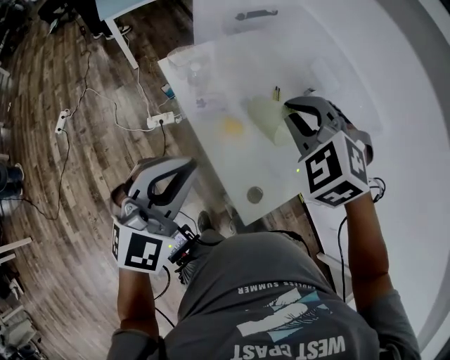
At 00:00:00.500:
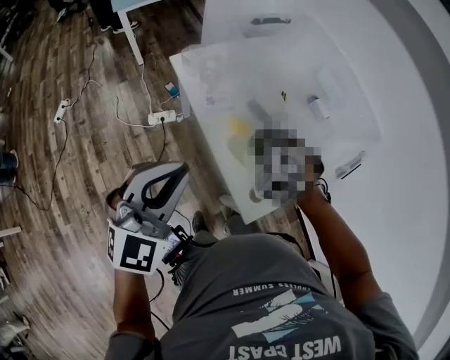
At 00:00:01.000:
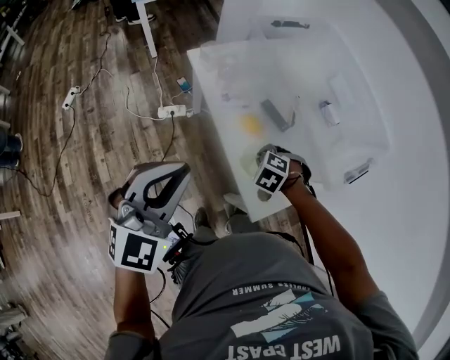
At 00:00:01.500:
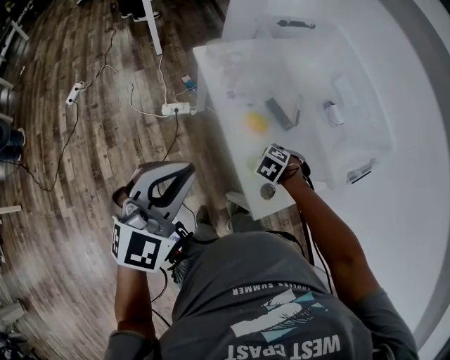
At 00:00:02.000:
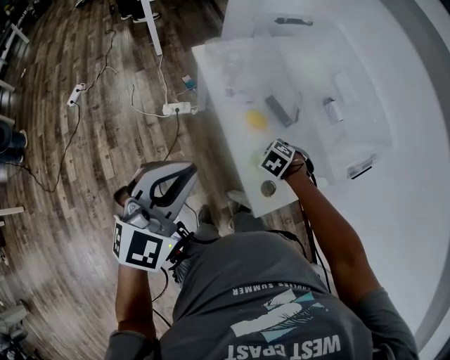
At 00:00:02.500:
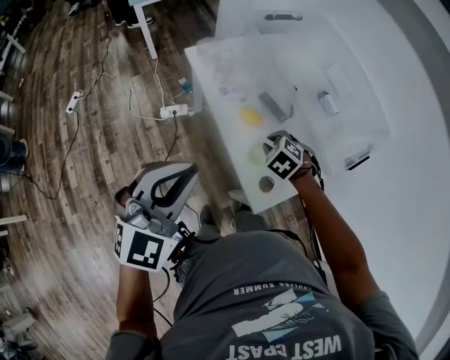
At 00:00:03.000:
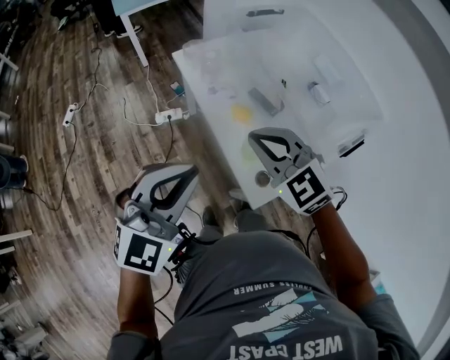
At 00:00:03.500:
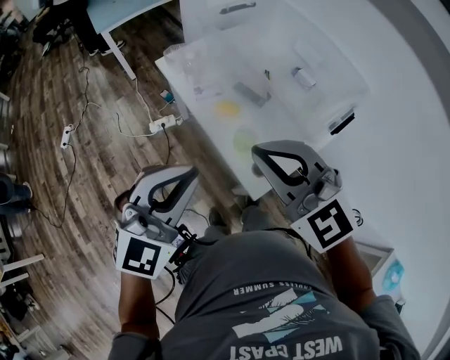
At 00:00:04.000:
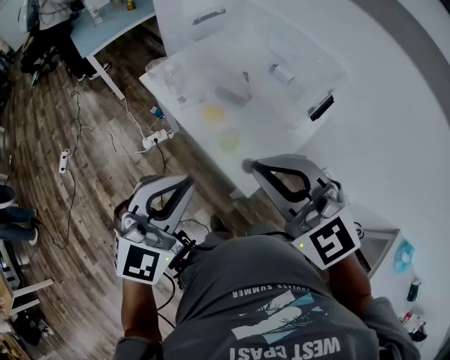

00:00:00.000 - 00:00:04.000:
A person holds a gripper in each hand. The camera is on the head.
00:00:00.000 - 00:00:02.000: The left gripper shifts by roughly 10 cm. Meanwhile the right gripper is displaced downward by roughly 30 cm, and points its fingers about 40 degrees further downward.
00:00:02.000 - 00:00:04.000: The right gripper shifts roughly 40 cm upward, and points its fingers about 70 degrees further upward. Meanwhile the left gripper shifts by approximately 10 cm.

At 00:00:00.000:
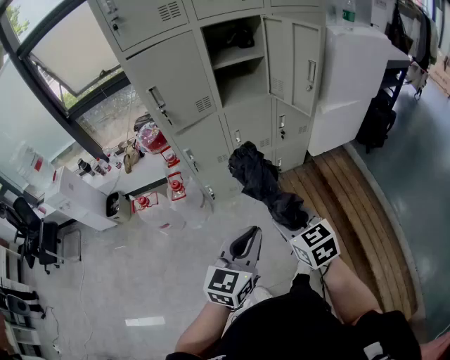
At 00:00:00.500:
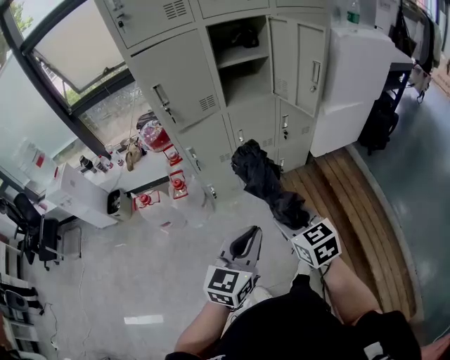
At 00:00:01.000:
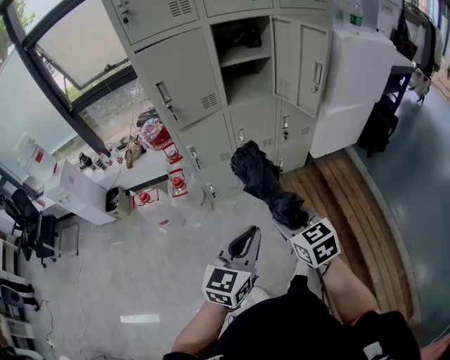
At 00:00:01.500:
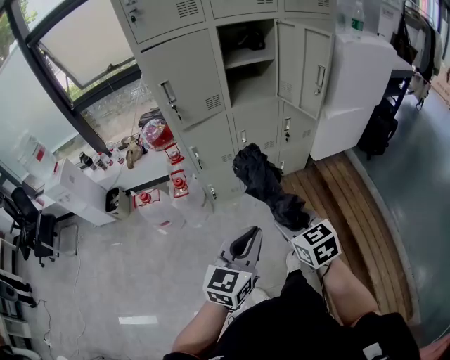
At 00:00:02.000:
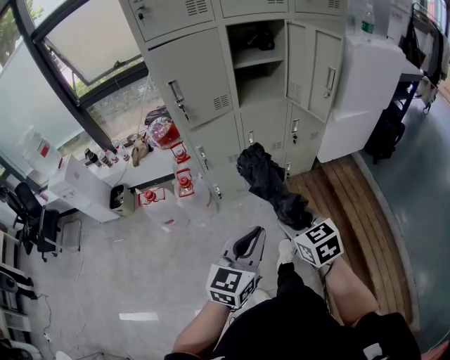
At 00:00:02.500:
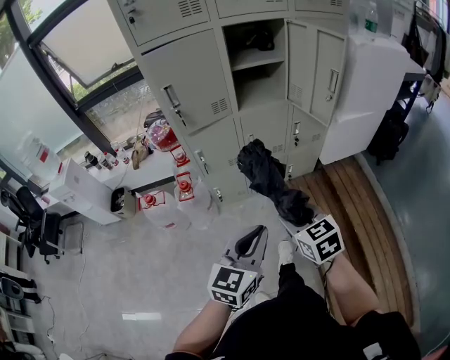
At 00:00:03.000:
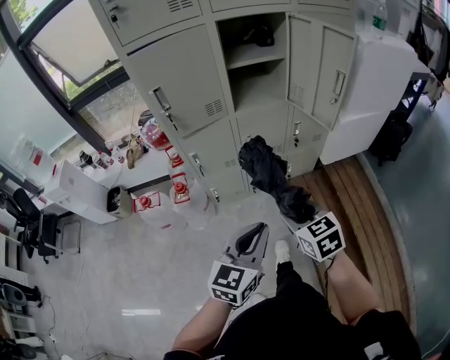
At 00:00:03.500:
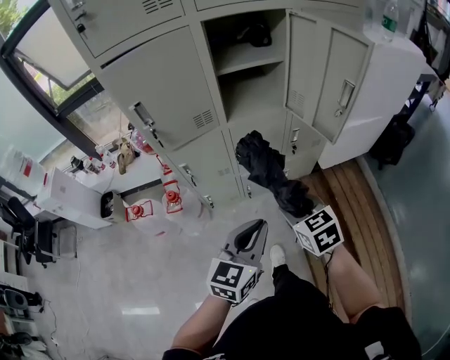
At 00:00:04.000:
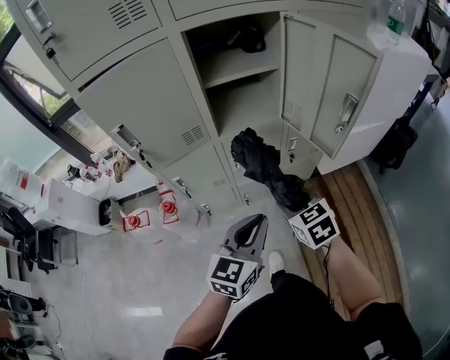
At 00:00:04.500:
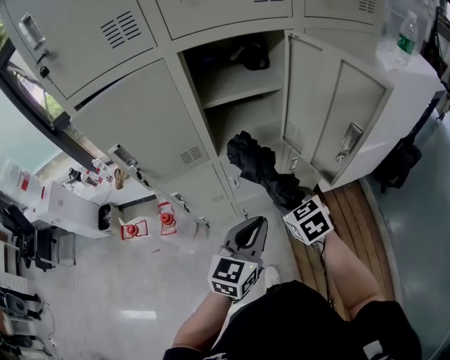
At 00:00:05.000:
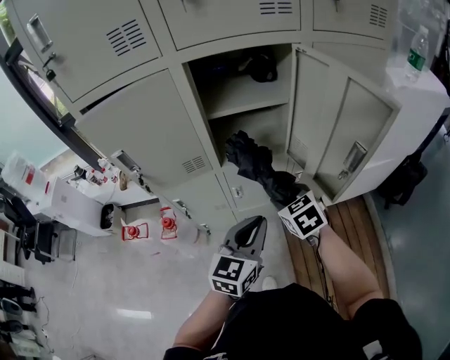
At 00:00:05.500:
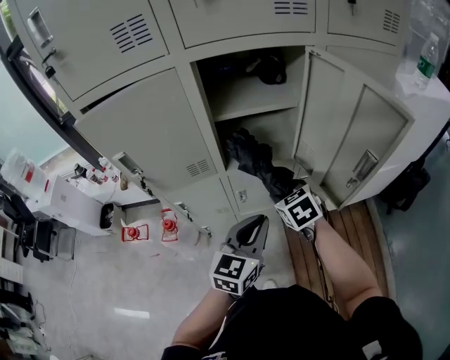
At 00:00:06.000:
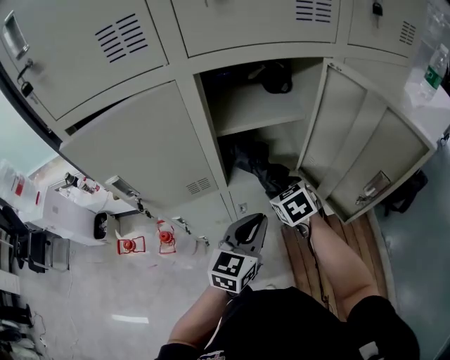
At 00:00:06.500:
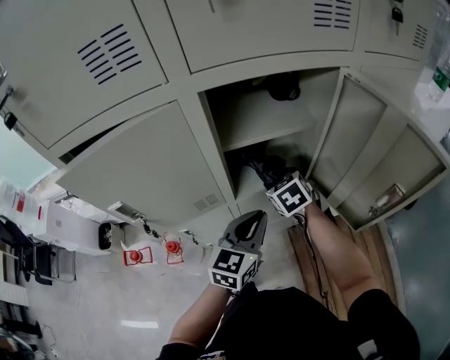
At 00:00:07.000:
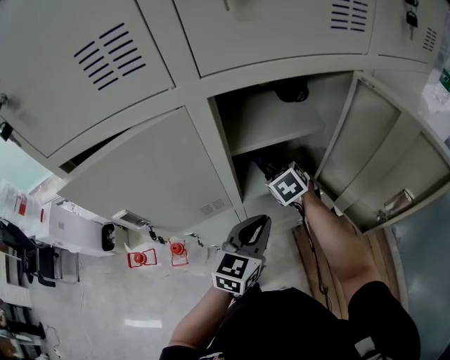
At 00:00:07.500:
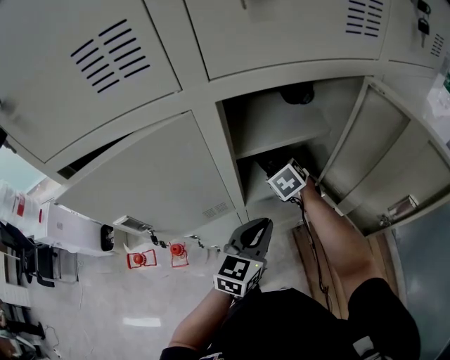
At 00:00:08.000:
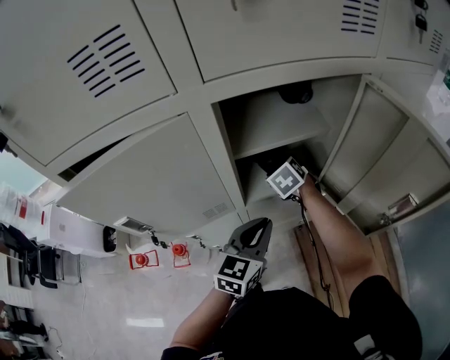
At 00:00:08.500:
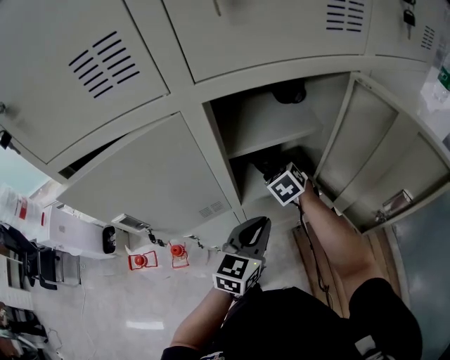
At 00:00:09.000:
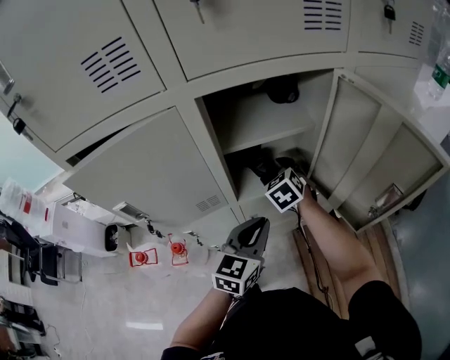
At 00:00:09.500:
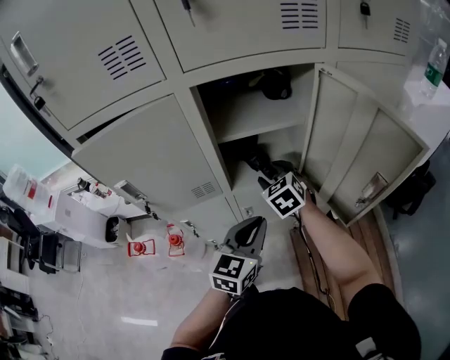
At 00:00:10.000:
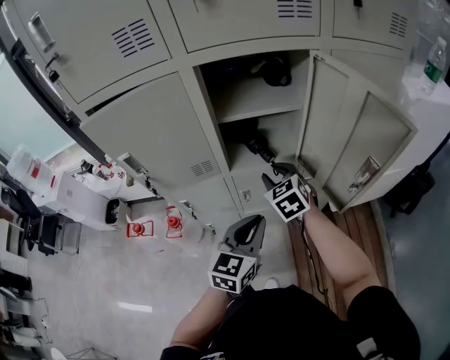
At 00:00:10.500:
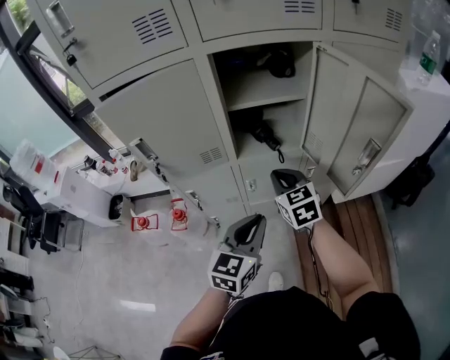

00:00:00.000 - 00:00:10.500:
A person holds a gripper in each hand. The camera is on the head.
00:00:00.000 - 00:00:02.000: There are only small adjustments of the grippers.
00:00:02.000 - 00:00:04.000: The two grippers go roughly 30 cm forward.
00:00:04.000 - 00:00:06.500: Both grippers travel together forward, approximately 30 cm.
00:00:06.500 - 00:00:08.500: The right gripper shifts some 5 cm forward.
00:00:08.500 - 00:00:10.500: Both grippers move backward, approximately 20 cm. The right gripper turns by some 20 degrees, and closes.

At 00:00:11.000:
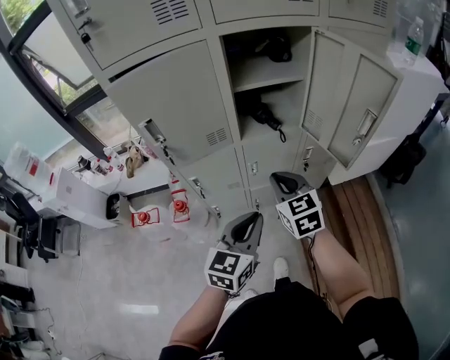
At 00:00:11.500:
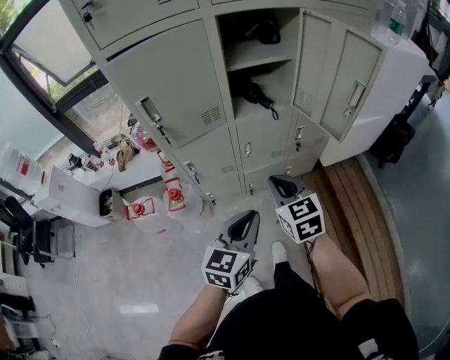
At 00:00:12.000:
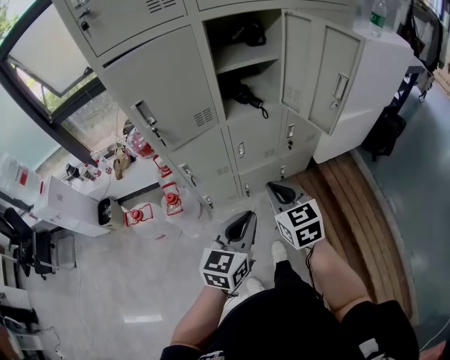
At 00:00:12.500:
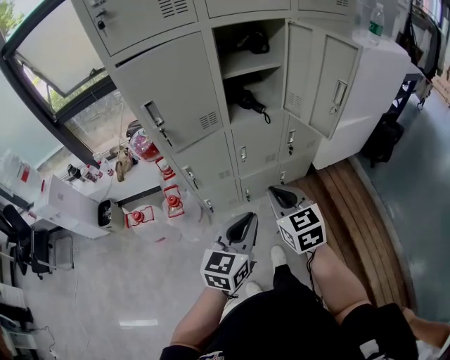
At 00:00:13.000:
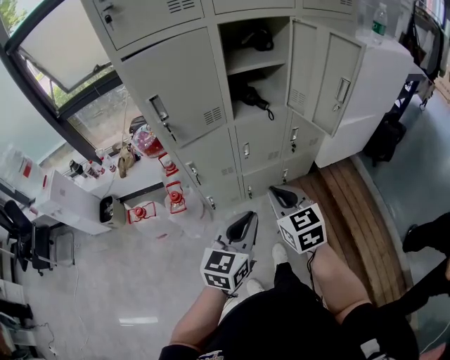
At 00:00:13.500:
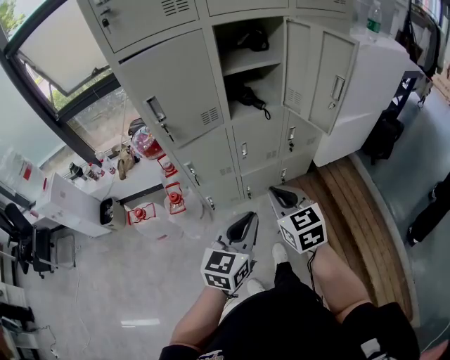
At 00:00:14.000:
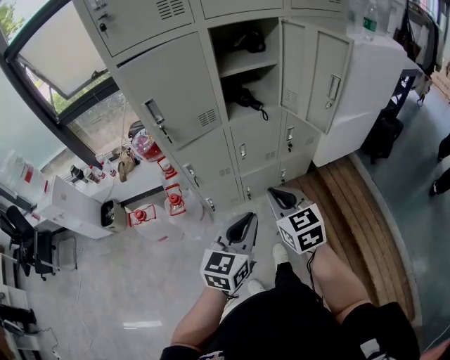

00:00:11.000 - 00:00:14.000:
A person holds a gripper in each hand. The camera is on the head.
00:00:11.000 - 00:00:12.500: The grippers both shift backward by some 15 cm.
00:00:12.500 - 00:00:14.000: There are only small adjustments of the grippers.

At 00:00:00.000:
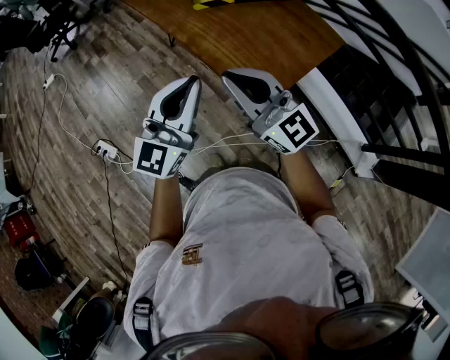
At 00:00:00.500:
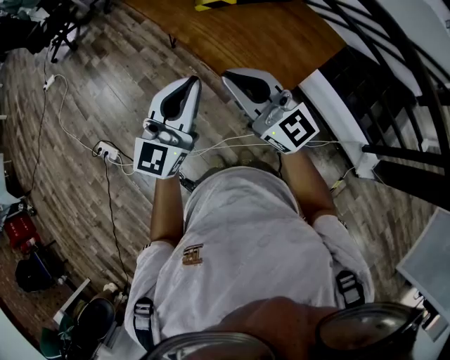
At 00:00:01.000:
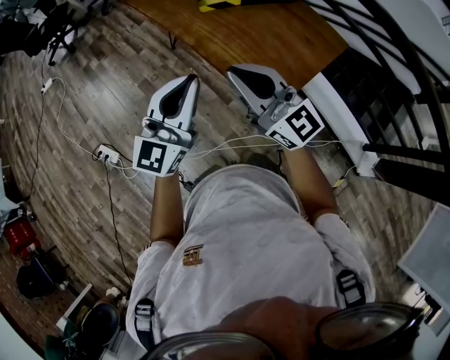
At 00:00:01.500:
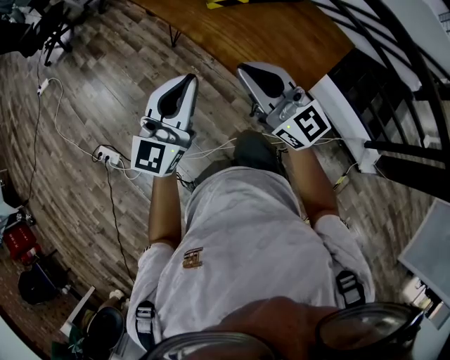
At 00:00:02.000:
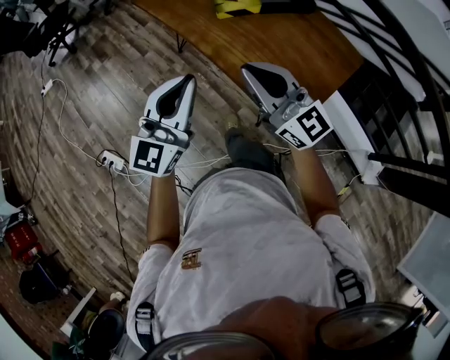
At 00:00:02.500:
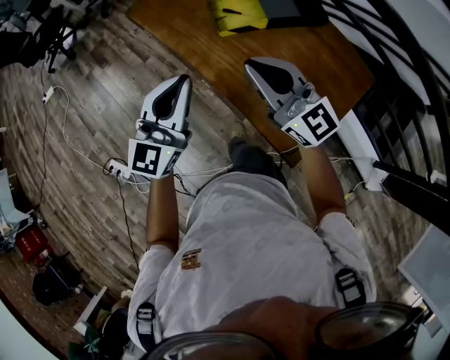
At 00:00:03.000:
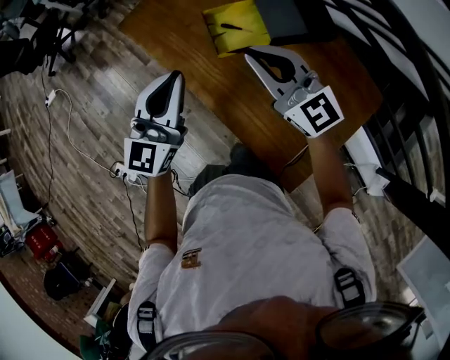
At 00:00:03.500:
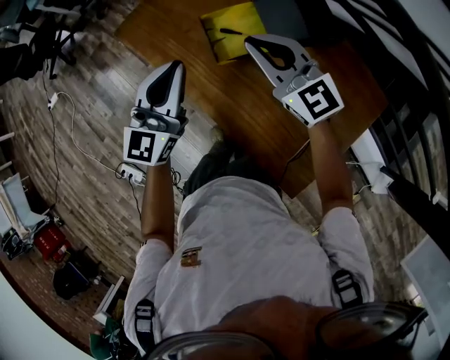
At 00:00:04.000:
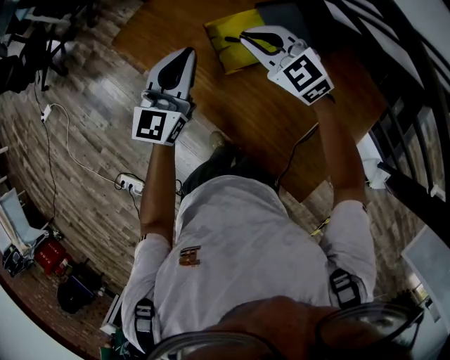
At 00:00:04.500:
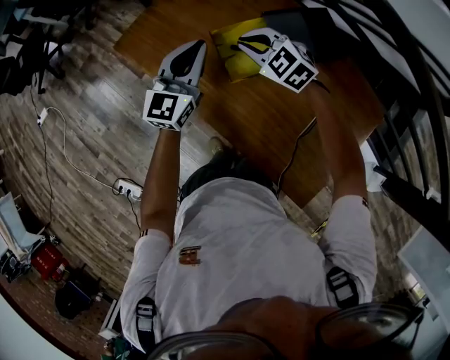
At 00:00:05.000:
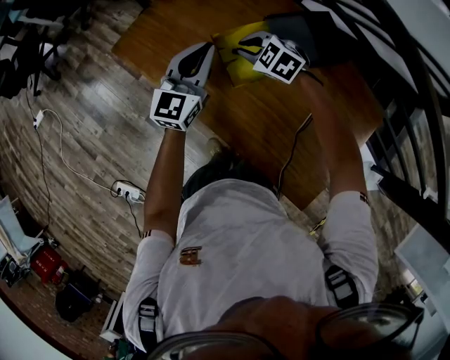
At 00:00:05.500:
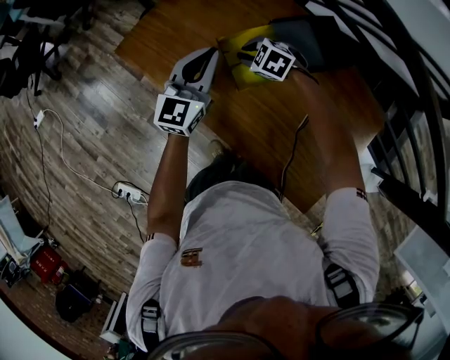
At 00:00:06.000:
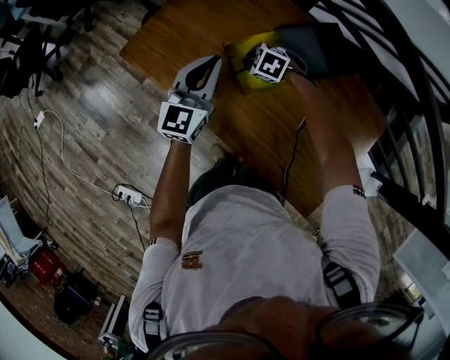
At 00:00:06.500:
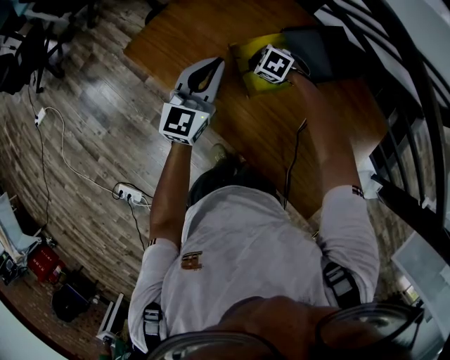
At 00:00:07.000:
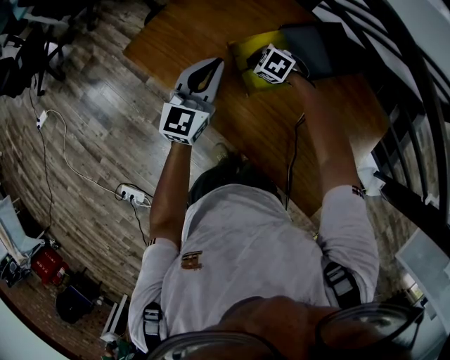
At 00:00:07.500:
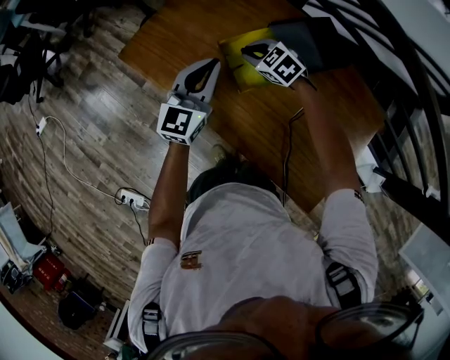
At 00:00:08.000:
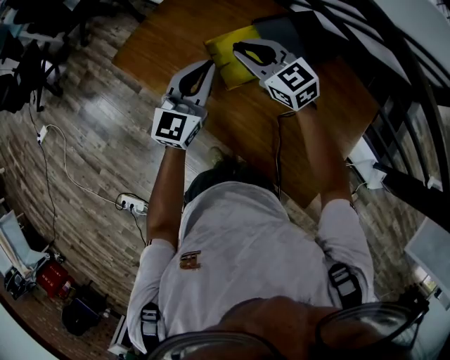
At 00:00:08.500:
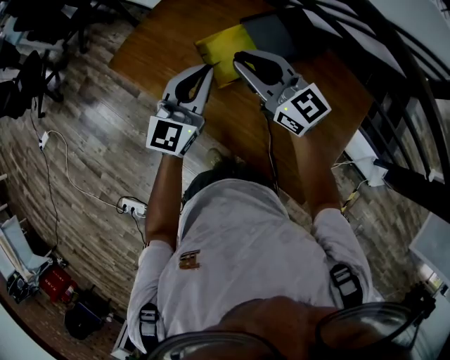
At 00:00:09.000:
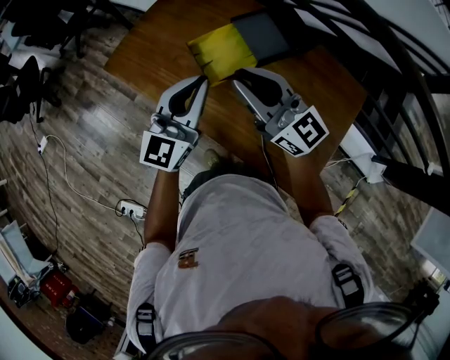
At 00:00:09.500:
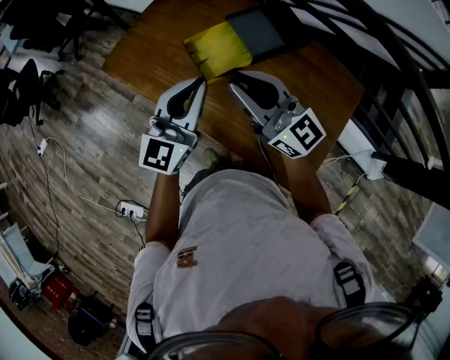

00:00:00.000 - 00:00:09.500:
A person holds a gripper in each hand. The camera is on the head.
00:00:00.000 - 00:00:02.000: The two grippers go about 20 cm forward and to the left.
00:00:02.000 - 00:00:04.000: The pair of grippers is taken forward, about 50 cm. The right gripper angles its fingers downward, by approximately 30 degrees.
00:00:04.000 - 00:00:05.500: The right gripper travels downward and forward by some 20 cm, and angles its fingers downward, by approximately 40 degrees. The left gripper goes about 10 cm forward and downward.
00:00:05.500 - 00:00:07.500: The grippers move only a little.
00:00:07.500 - 00:00:09.500: The right gripper goes approximately 35 cm upward and backward, and tilts its fingers roughly 60 degrees upward. Meanwhile the left gripper is displaced backward, upward and to the right by approximately 20 cm.
